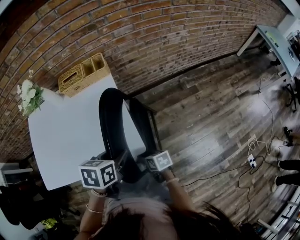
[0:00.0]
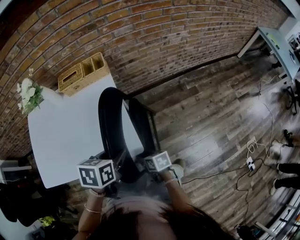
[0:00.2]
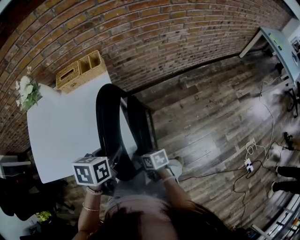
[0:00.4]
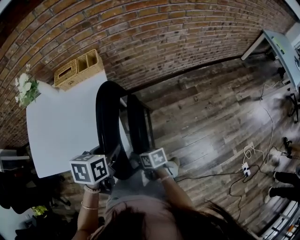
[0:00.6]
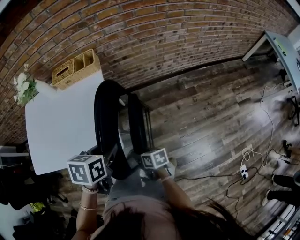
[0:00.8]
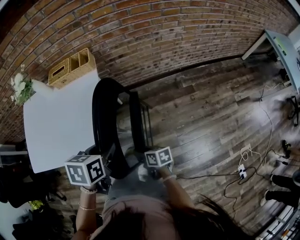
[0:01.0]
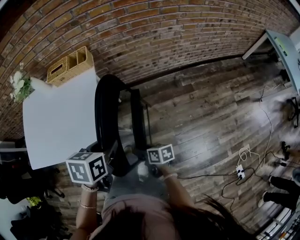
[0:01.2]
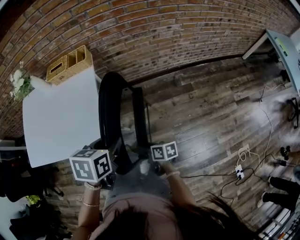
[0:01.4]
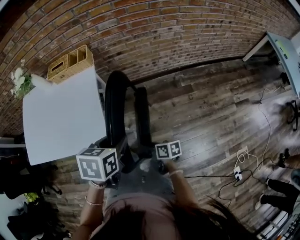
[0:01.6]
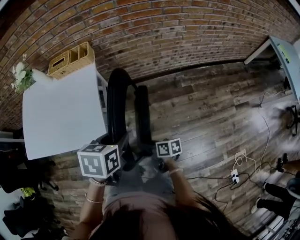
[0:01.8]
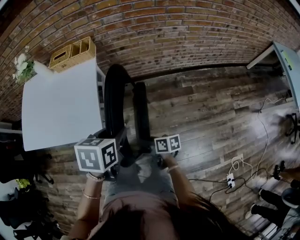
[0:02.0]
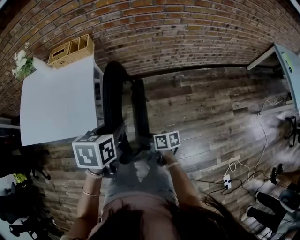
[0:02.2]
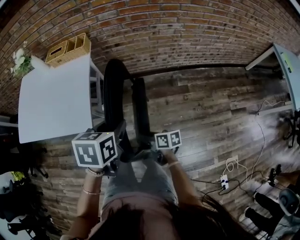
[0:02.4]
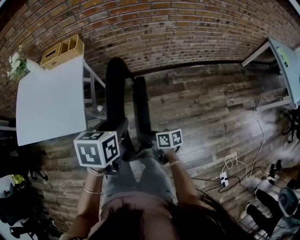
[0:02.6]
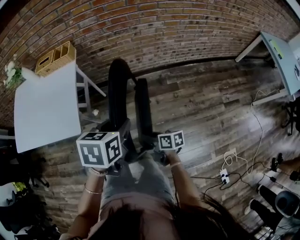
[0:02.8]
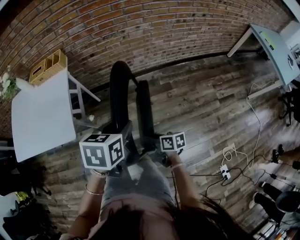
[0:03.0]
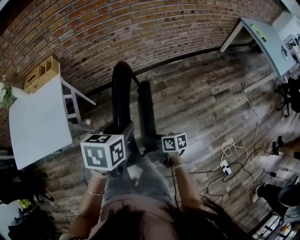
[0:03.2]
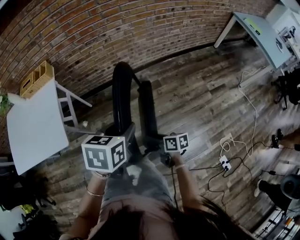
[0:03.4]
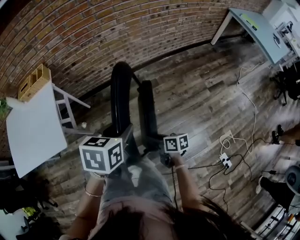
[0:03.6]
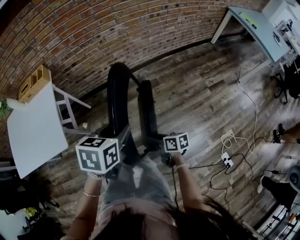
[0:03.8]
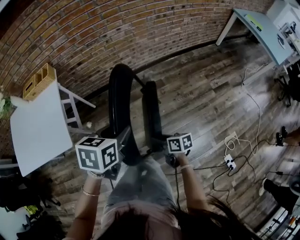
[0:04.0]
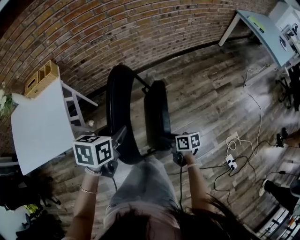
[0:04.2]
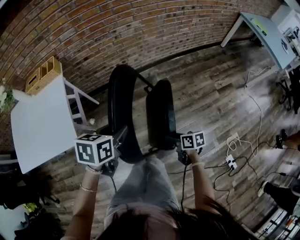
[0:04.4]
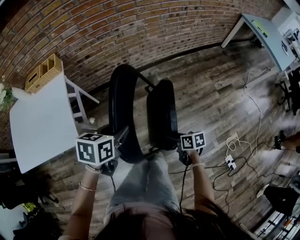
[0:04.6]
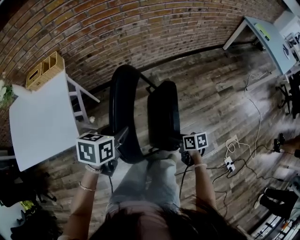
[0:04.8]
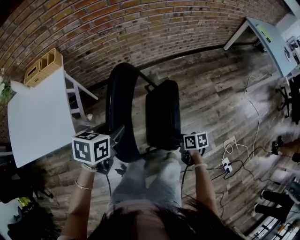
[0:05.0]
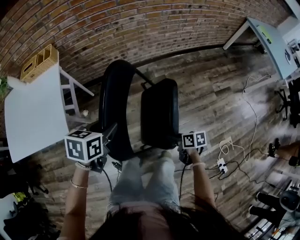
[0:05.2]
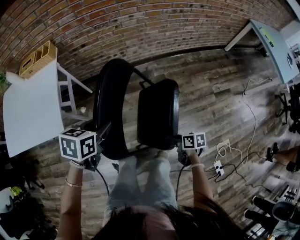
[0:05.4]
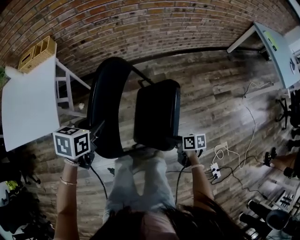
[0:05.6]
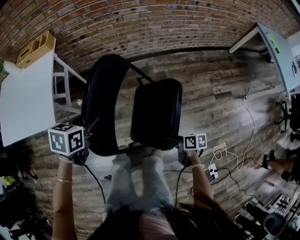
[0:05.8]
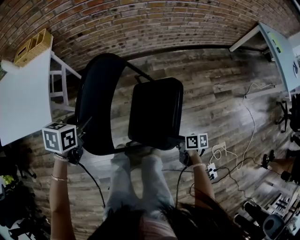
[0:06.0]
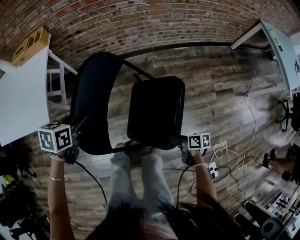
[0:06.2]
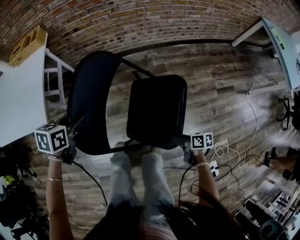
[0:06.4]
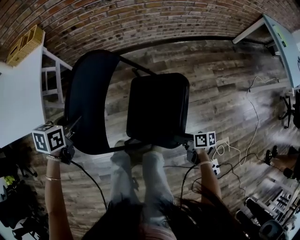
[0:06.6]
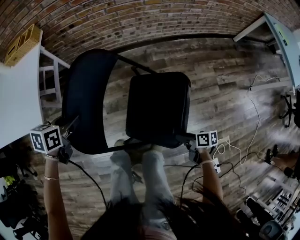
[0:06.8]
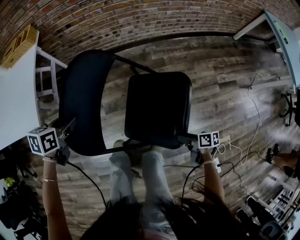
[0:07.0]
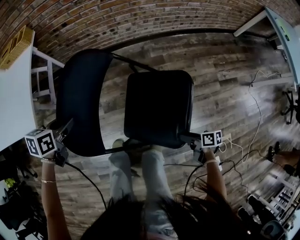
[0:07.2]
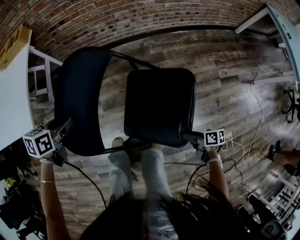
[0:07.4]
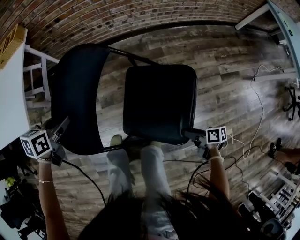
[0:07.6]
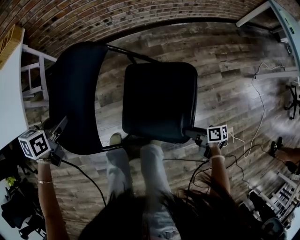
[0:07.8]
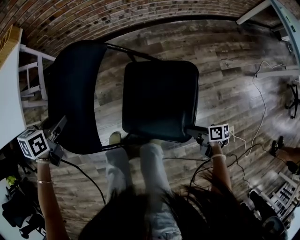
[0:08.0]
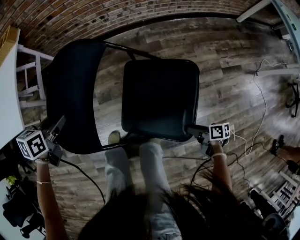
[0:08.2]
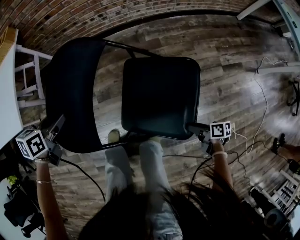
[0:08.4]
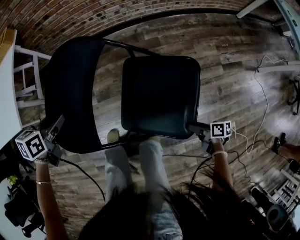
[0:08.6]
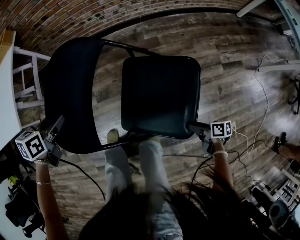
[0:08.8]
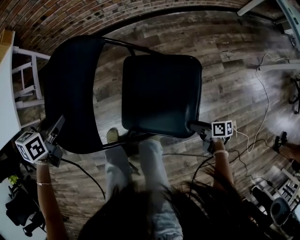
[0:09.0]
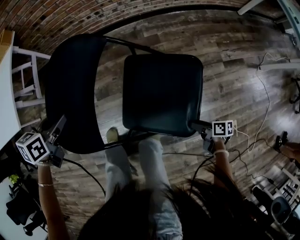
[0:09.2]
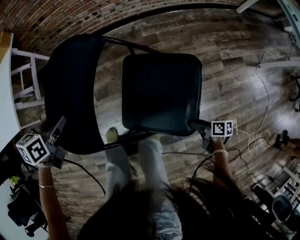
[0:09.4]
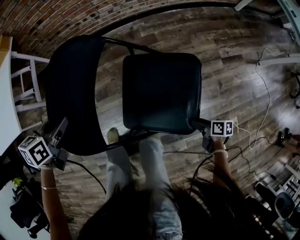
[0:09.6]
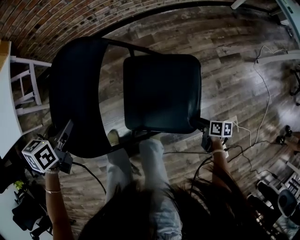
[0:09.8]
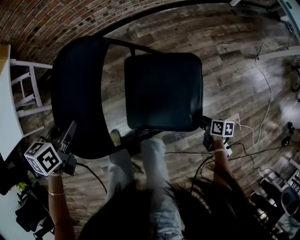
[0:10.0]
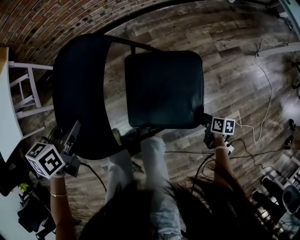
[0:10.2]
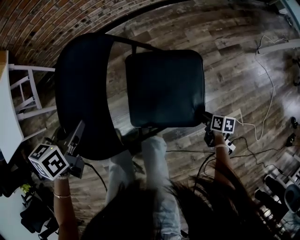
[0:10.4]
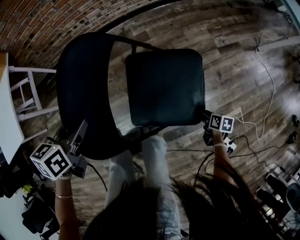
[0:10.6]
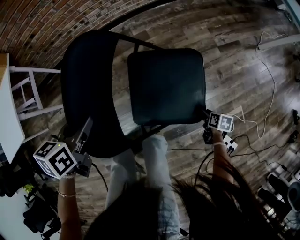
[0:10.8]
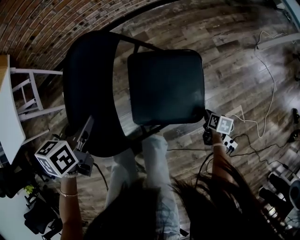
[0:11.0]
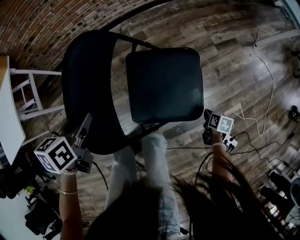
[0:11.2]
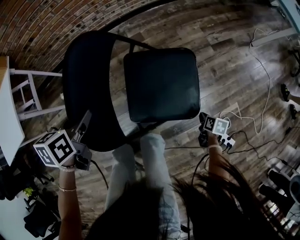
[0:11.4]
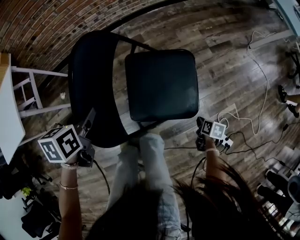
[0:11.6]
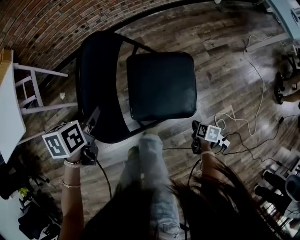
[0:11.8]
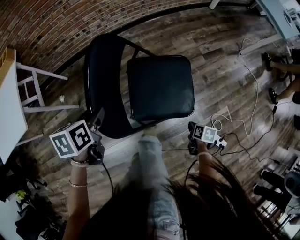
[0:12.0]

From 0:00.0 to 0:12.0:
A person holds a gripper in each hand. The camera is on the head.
From 0:00.0 to 0:01.6: Both grippers travel together to the right, approximately 20 cm.
From 0:01.6 to 0:03.0: The two grippers go about 20 cm to the right.
From 0:03.0 to 0:04.4: The right gripper moves to the right, roughly 10 cm. Meanwhile the left gripper reaches some 5 cm to the right, then returns.
From 0:04.4 to 0:06.0: The left gripper shifts approximately 5 cm downward. Meanwhile the right gripper shifts roughly 15 cm to the right and downward.
From 0:06.0 to 0:07.6: The right gripper moves to the right and downward, approximately 15 cm. Meanwhile the left gripper shifts roughly 10 cm downward.
From 0:07.6 to 0:09.0: The right gripper goes some 10 cm to the right and downward. Meanwhile the left gripper moves some 5 cm.
From 0:09.0 to 0:10.4: The left gripper moves to the right, some 15 cm, while the right gripper heads to the right, covering some 10 cm, and swivels about 30 degrees.
From 0:10.4 to 0:12.0: The right gripper shifts some 10 cm backward and upward, and closes up.

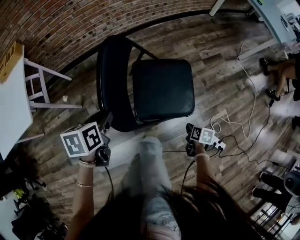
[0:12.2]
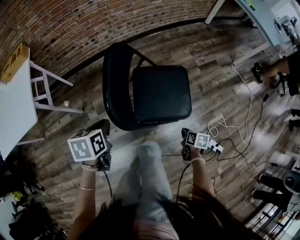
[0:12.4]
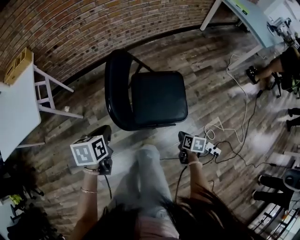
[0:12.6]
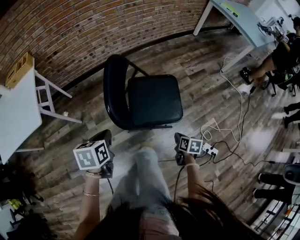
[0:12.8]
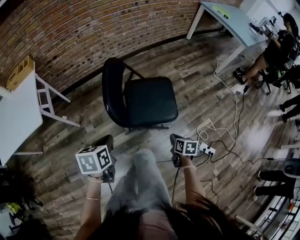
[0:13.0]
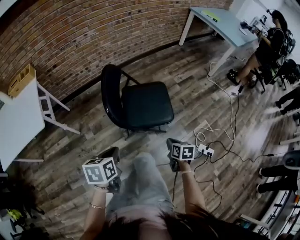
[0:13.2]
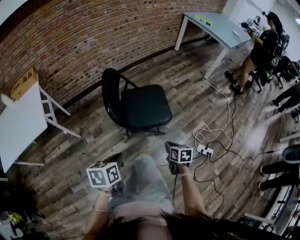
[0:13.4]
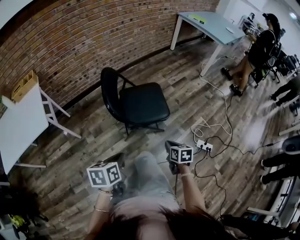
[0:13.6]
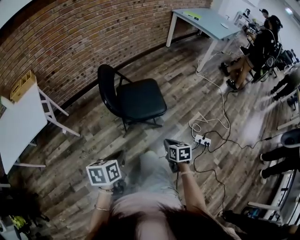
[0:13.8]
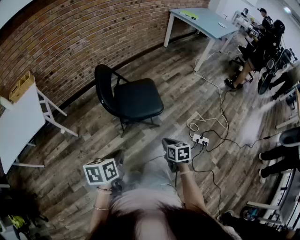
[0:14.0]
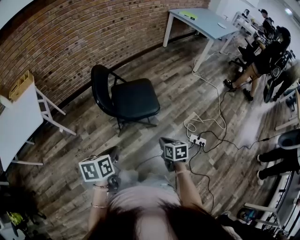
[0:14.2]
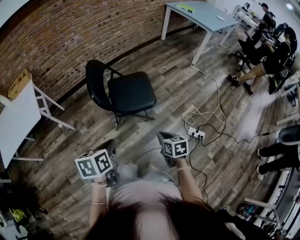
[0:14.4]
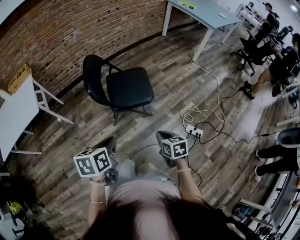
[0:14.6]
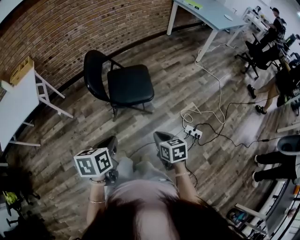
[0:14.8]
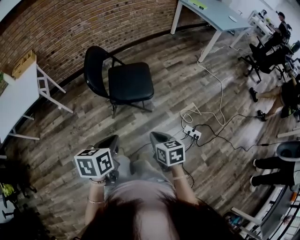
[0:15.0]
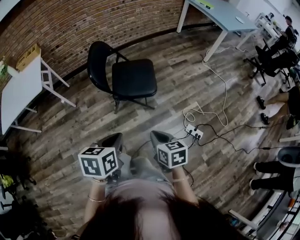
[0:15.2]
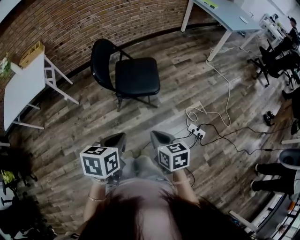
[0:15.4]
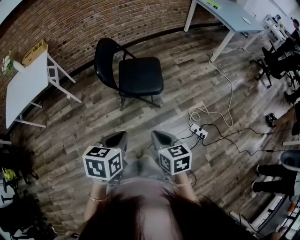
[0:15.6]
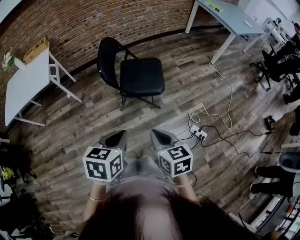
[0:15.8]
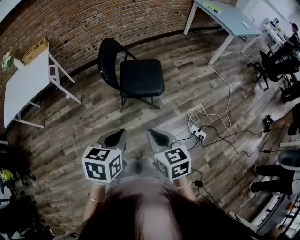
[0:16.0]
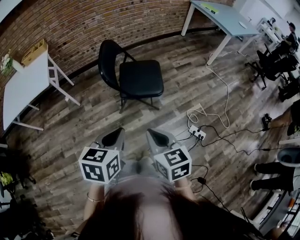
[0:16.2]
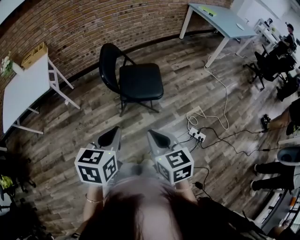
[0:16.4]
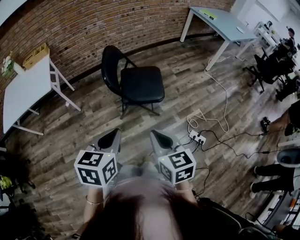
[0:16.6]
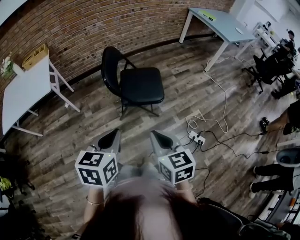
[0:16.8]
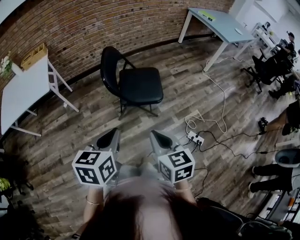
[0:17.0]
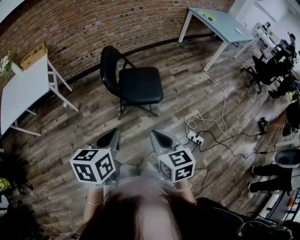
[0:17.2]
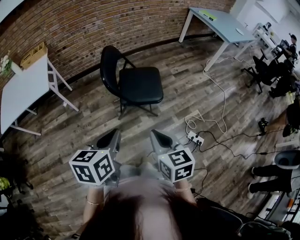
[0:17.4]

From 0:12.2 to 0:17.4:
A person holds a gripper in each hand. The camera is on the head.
From 0:12.2 to 0:14.0: The right gripper is displaced backward and upward by about 30 cm, and turns by some 20 degrees; the left gripper goes approximately 30 cm backward, and closes its fingers.
From 0:14.0 to 0:15.6: The left gripper heads to the right, upward and backward, covering about 20 cm. Meanwhile the right gripper shifts approximately 20 cm upward and backward, and rotates some 20 degrees.
From 0:15.6 to 0:17.4: The right gripper goes roughly 10 cm upward and to the left; the left gripper moves to the left and upward, some 10 cm.

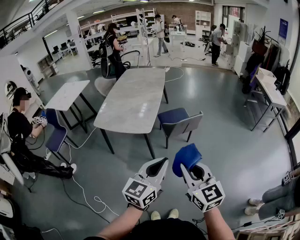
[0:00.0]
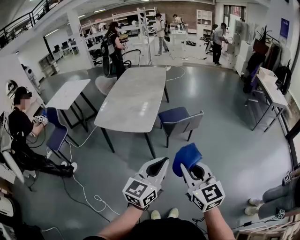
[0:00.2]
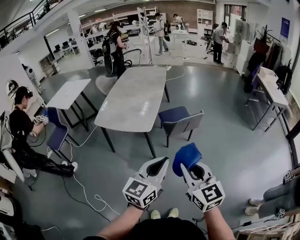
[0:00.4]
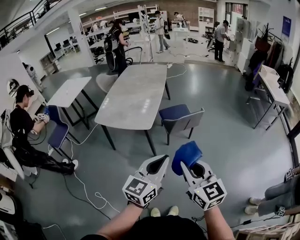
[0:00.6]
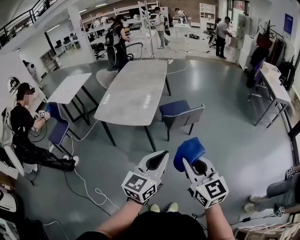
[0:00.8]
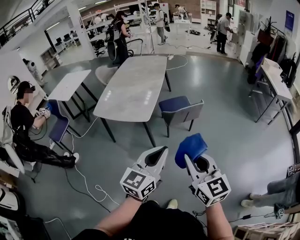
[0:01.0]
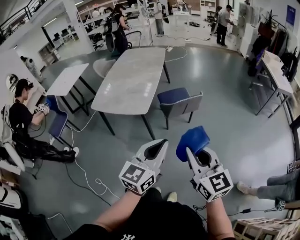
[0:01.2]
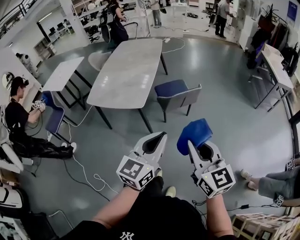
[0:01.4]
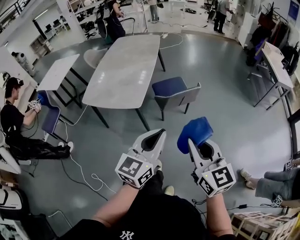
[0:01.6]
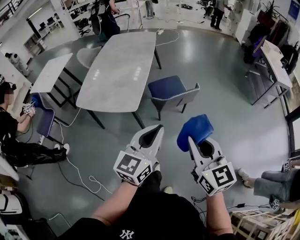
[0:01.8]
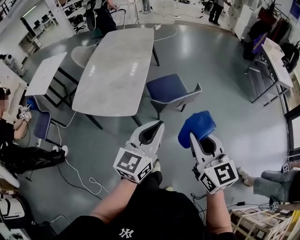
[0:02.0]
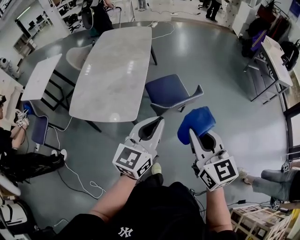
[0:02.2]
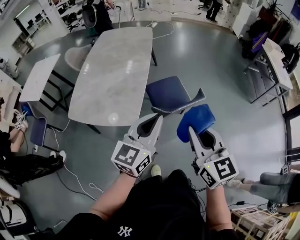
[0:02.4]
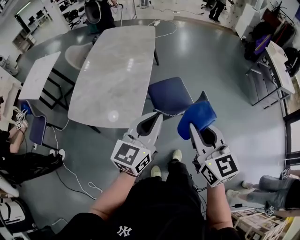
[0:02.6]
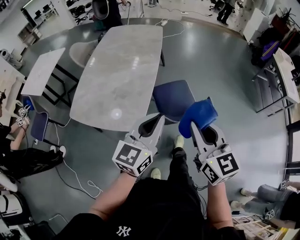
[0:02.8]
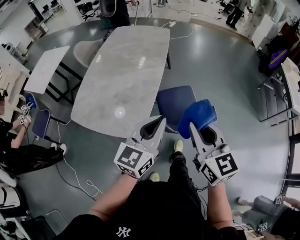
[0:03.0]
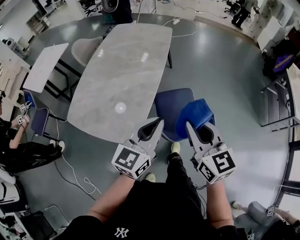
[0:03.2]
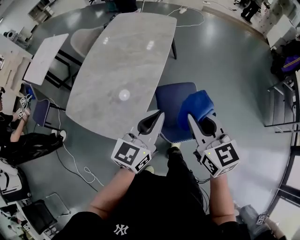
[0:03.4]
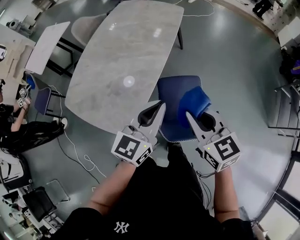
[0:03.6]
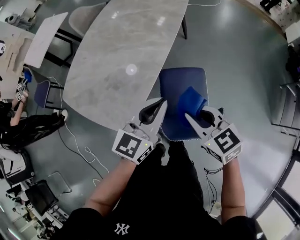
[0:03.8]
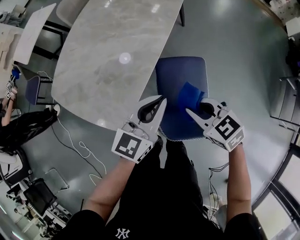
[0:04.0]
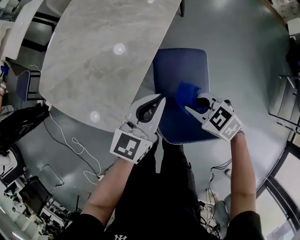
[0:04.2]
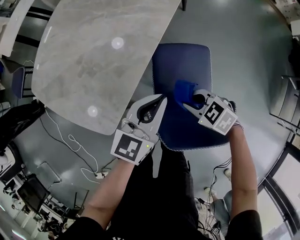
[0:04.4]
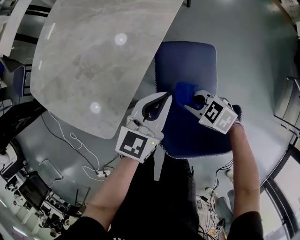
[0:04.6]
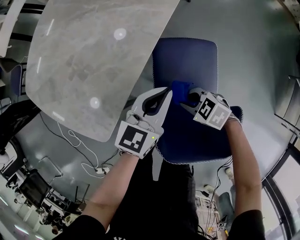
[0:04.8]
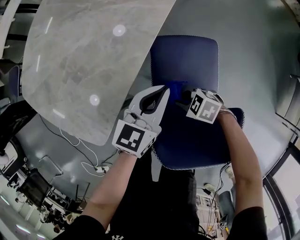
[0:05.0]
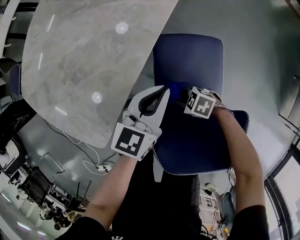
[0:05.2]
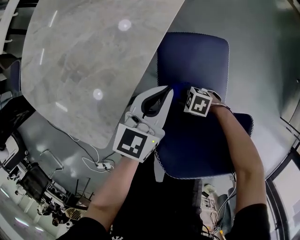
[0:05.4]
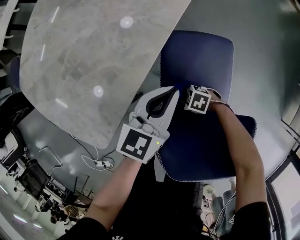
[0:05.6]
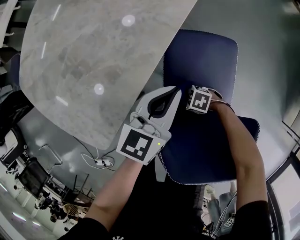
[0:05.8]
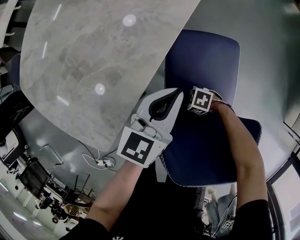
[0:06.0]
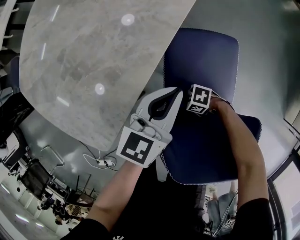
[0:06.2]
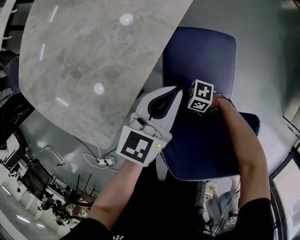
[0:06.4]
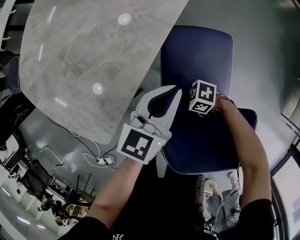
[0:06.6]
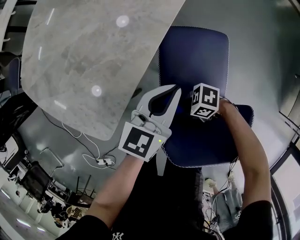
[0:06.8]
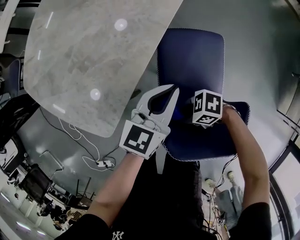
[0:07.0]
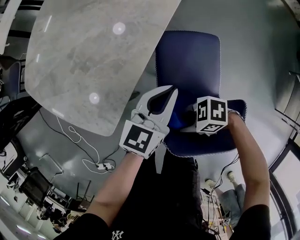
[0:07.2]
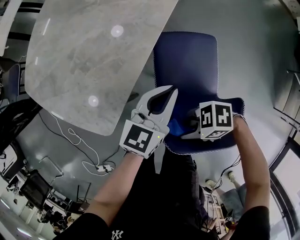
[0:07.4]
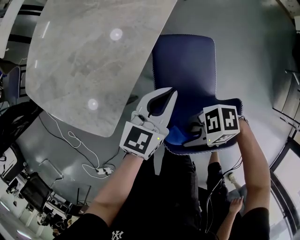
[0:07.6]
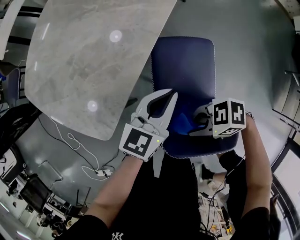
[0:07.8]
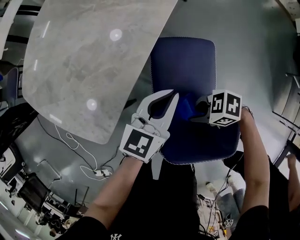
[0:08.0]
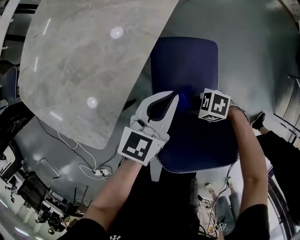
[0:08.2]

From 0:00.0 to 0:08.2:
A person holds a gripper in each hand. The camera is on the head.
From 0:00.0 to 0:01.6: The left gripper shifts approximately 10 cm forward, while the right gripper is displaced forward and to the right by some 10 cm.
From 0:01.6 to 0:03.2: Both grippers are carried forward, some 40 cm.
From 0:03.2 to 0:05.0: The right gripper is displaced downward by roughly 50 cm, and tilts its fingers roughly 40 degrees downward; the left gripper is displaced downward by roughly 35 cm, and changes its angle by approximately 20 degrees.
From 0:05.0 to 0:06.6: The right gripper changes its angle by about 40 degrees.
From 0:06.6 to 0:08.2: The right gripper travels upward and back again, about 25 cm each way, and changes its angle by roughly 20 degrees.
